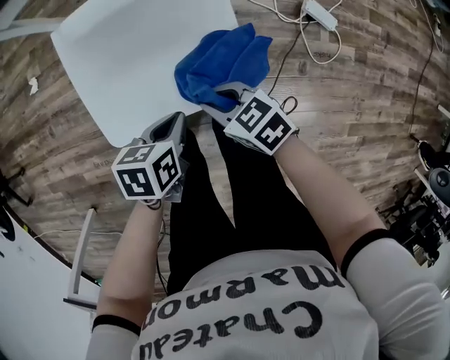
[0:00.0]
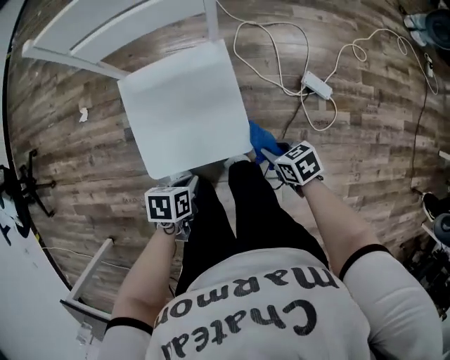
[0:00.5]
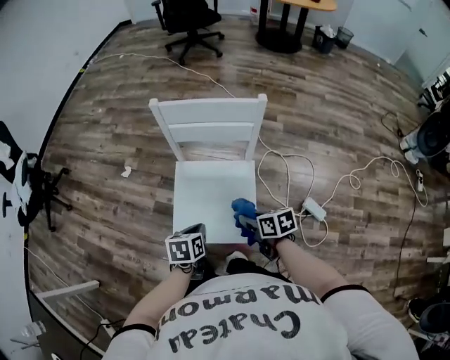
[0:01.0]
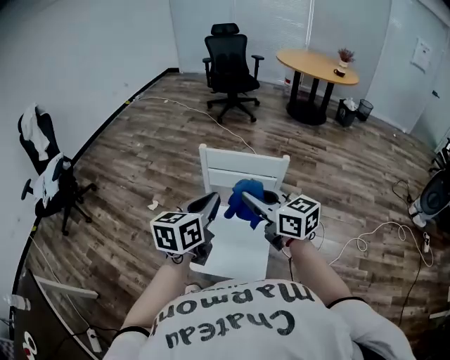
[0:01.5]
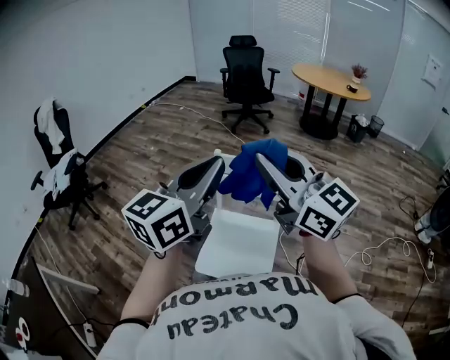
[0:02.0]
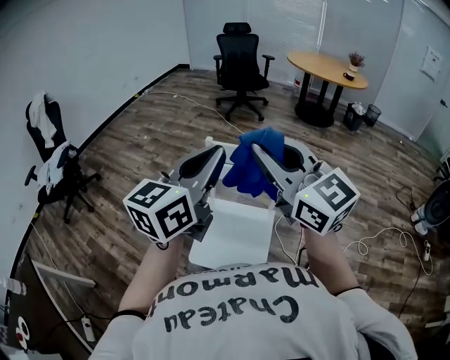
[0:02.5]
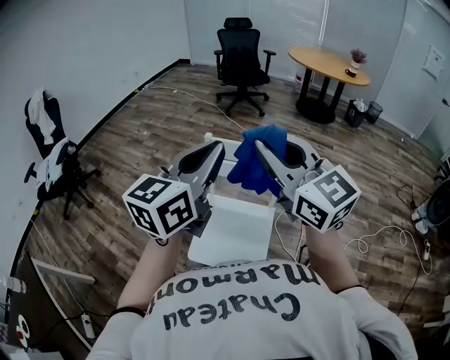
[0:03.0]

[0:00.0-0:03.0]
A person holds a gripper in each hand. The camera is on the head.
0:00.0 to 0:01.5: Both grippers travel together upward, some 50 cm. The left gripper angles its fingers upward, by about 40 degrees; the right gripper tilts its fingers about 40 degrees upward.
0:01.5 to 0:03.0: The two grippers go roughly 15 cm upward. The right gripper turns by approximately 30 degrees; the left gripper changes its angle by approximately 20 degrees.

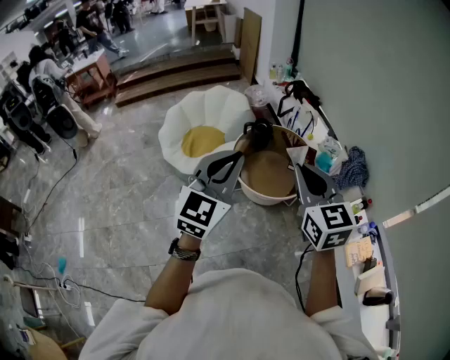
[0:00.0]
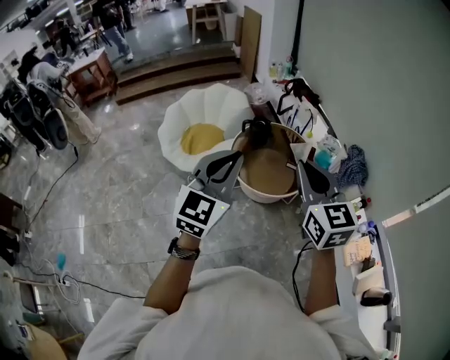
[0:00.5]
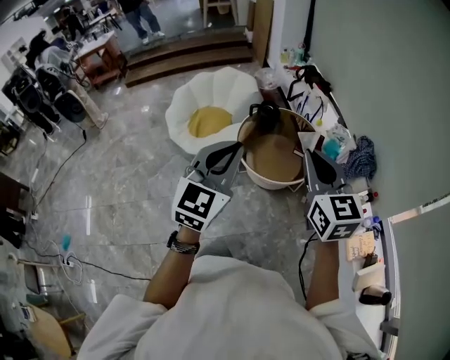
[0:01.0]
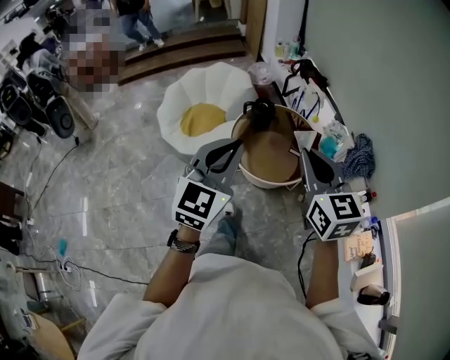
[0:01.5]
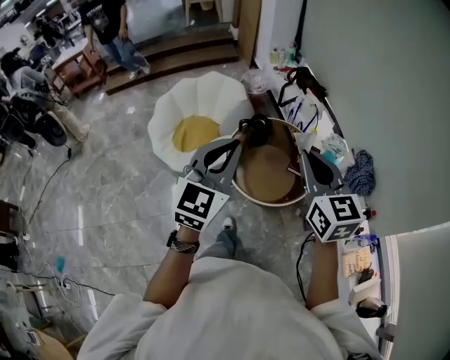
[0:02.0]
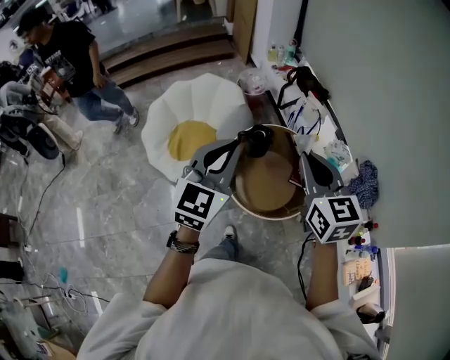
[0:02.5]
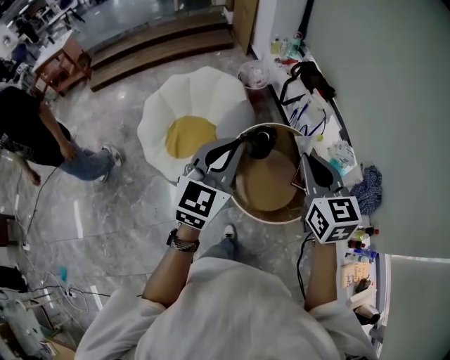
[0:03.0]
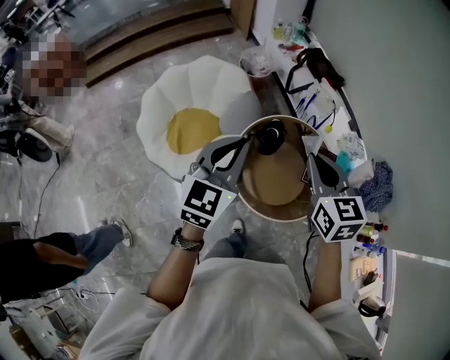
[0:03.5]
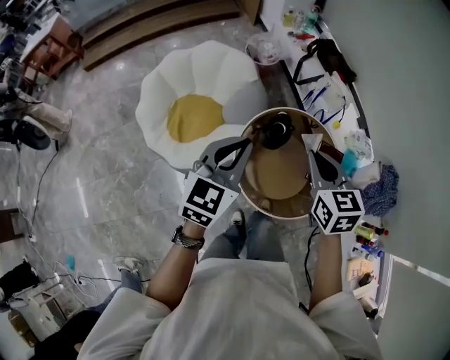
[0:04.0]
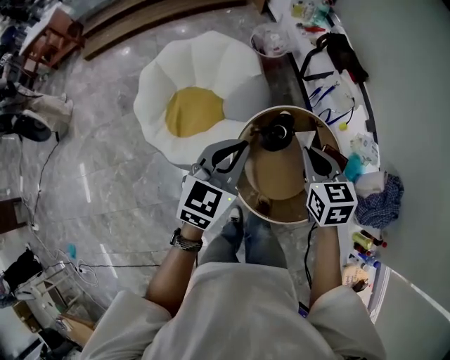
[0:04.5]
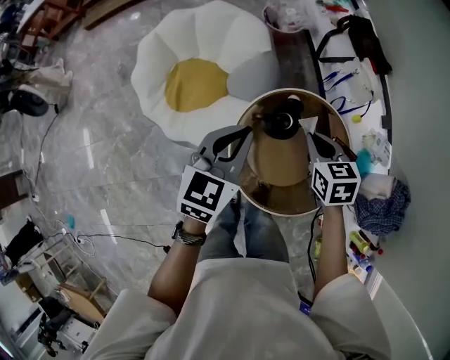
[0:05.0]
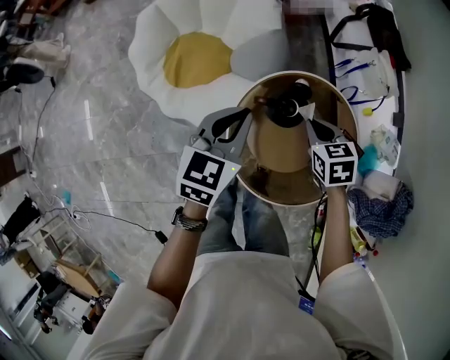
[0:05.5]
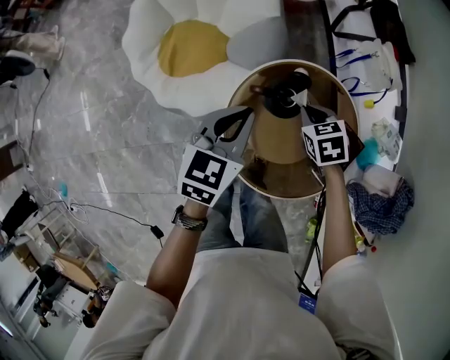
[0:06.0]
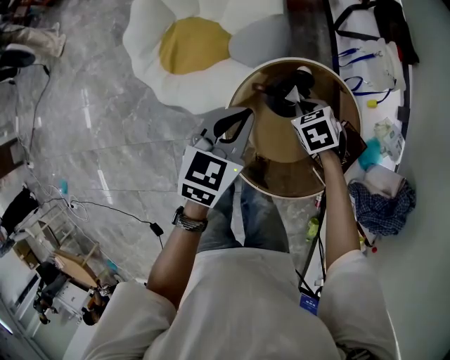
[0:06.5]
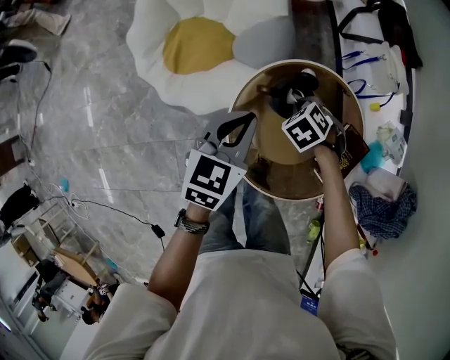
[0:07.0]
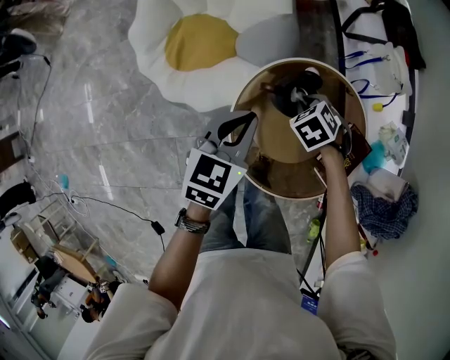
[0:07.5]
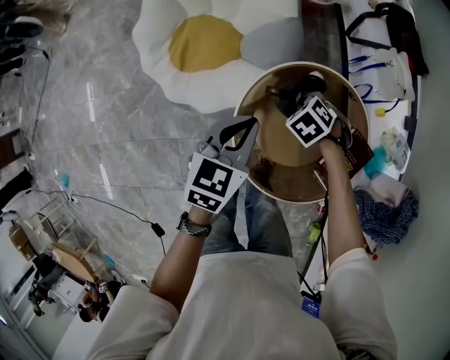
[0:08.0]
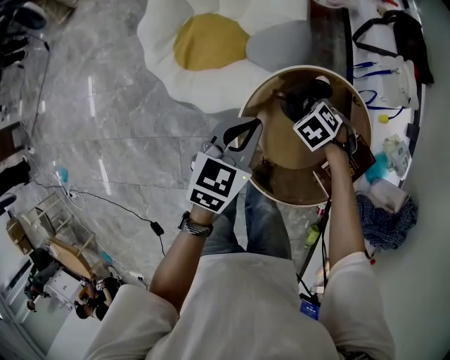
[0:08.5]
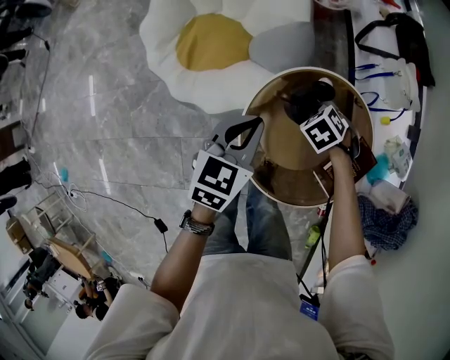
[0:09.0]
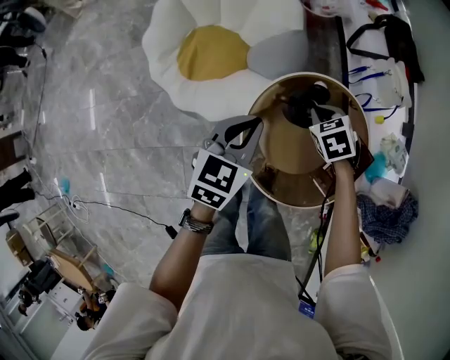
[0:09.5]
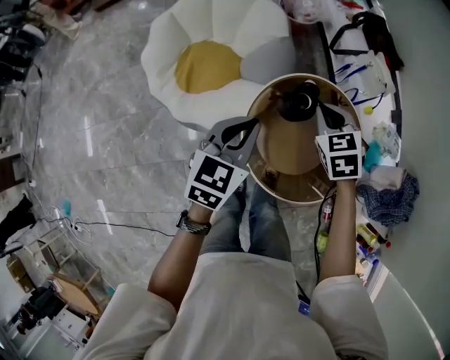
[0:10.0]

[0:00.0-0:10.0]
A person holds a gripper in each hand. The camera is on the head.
0:00.0 to 0:02.0: The two grippers go roughly 20 cm forward.
0:02.0 to 0:04.0: The grippers both shift forward and downward by some 35 cm. The right gripper turns by approximately 20 degrees.
0:04.0 to 0:06.0: The two grippers go roughly 30 cm downward and forward. The left gripper turns by roughly 30 degrees; the right gripper angles its fingers downward, by approximately 30 degrees.
0:06.0 to 0:08.0: The right gripper goes some 5 cm downward, and swivels about 30 degrees.
0:08.0 to 0:10.0: The left gripper moves upward, roughly 10 cm. The right gripper travels upward by roughly 20 cm, and turns by some 40 degrees.

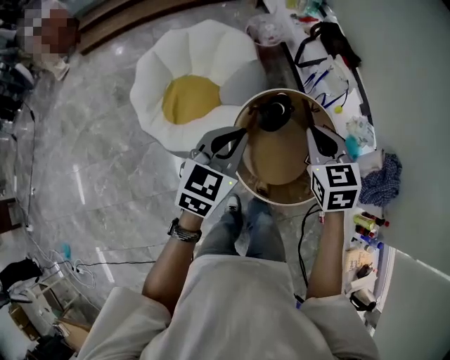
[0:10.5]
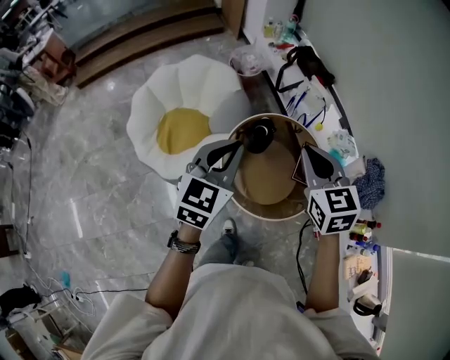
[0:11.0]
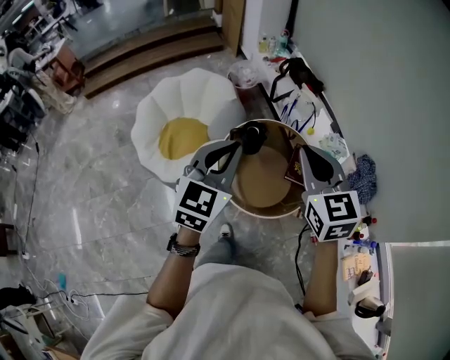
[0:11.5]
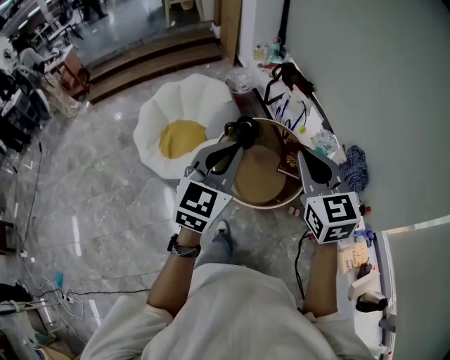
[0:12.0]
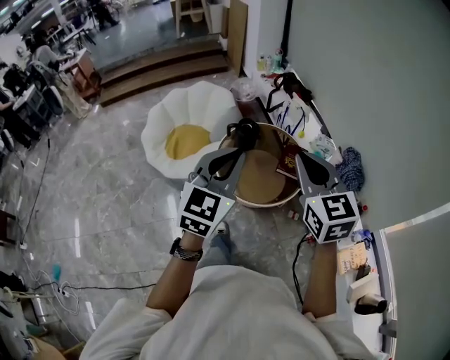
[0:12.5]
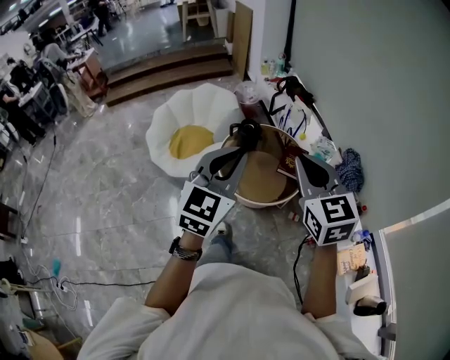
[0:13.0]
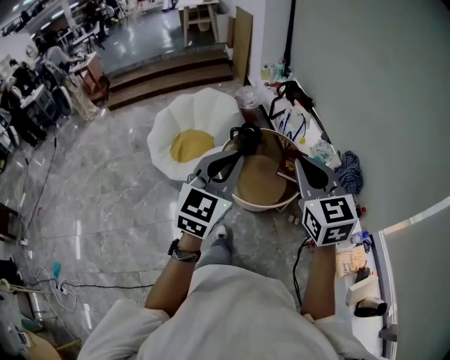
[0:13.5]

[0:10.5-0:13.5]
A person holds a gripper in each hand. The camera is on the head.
0:10.5 to 0:12.0: Both grippers travel together backward, upward and to the right, approximately 35 cm. The right gripper turns by approximately 20 degrees.
0:12.0 to 0:13.5: Both grippers travel together backward, roughly 15 cm.

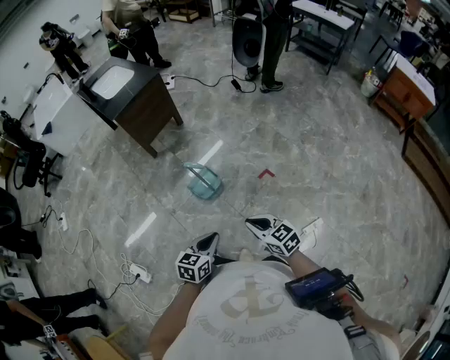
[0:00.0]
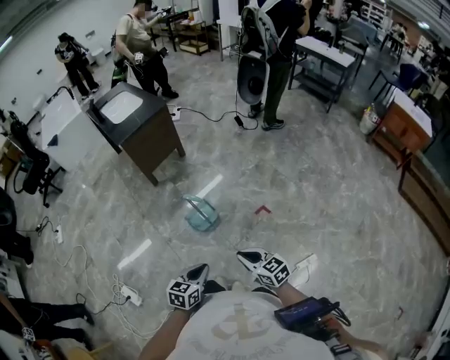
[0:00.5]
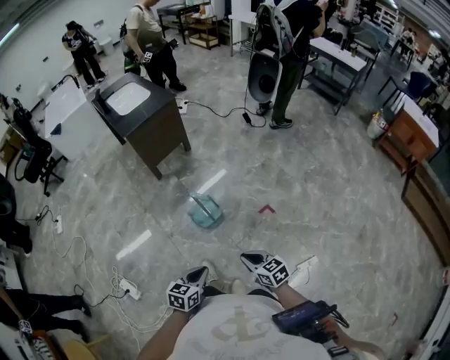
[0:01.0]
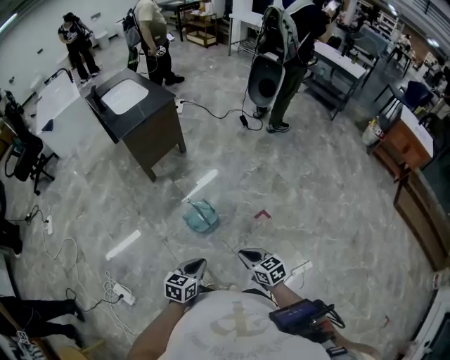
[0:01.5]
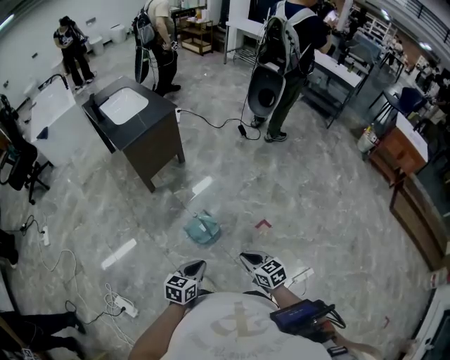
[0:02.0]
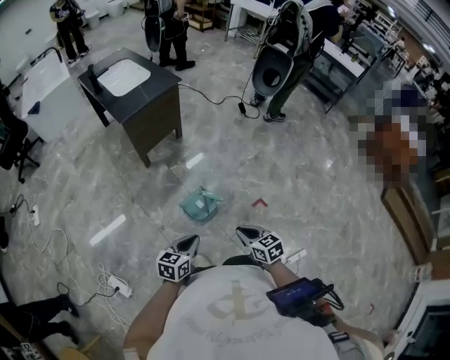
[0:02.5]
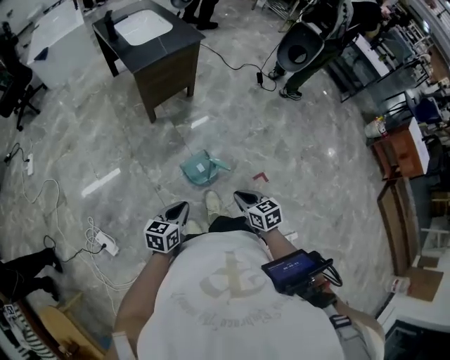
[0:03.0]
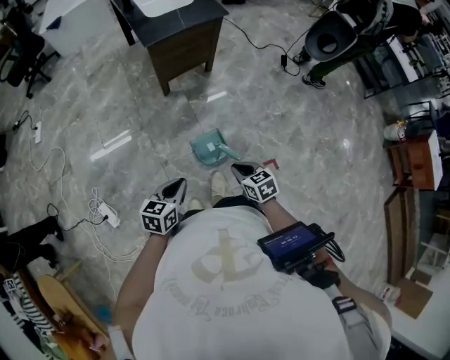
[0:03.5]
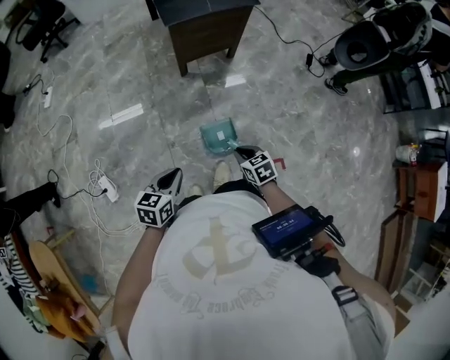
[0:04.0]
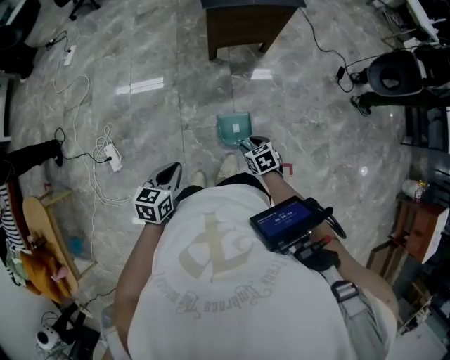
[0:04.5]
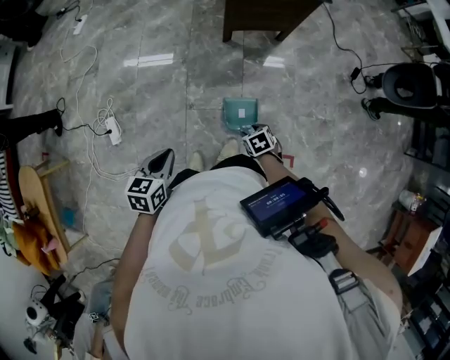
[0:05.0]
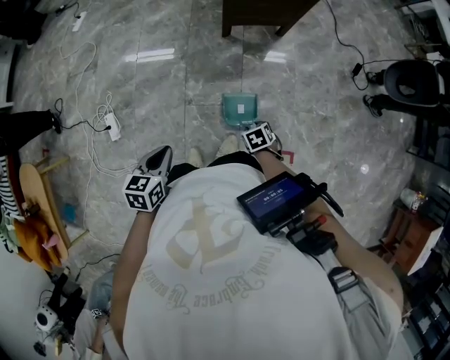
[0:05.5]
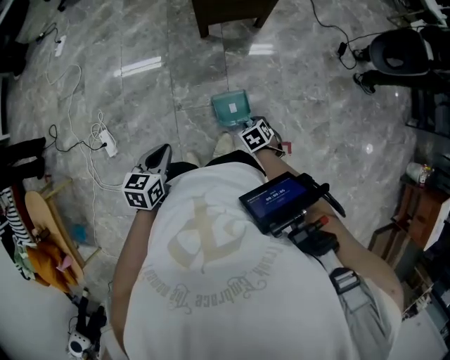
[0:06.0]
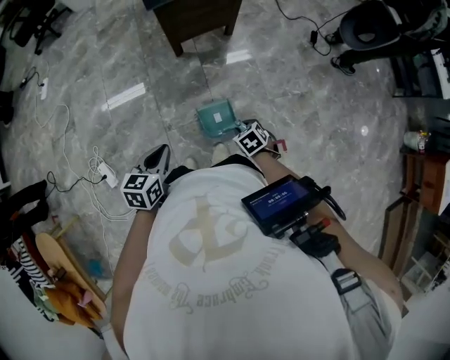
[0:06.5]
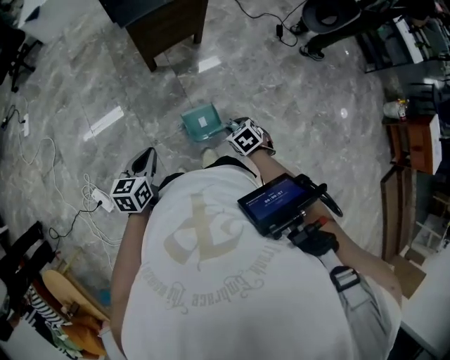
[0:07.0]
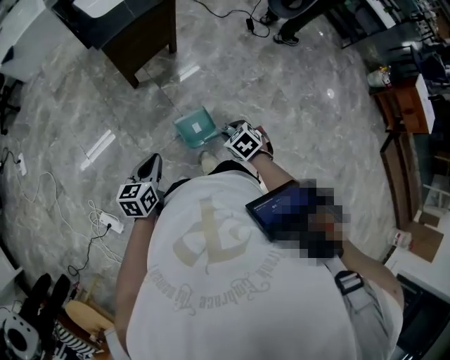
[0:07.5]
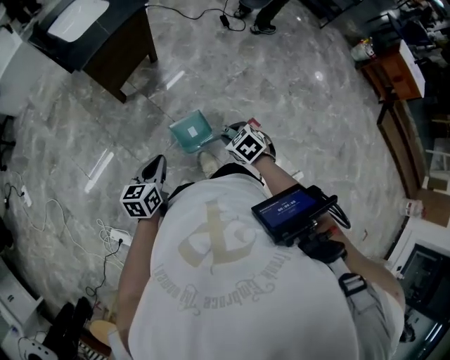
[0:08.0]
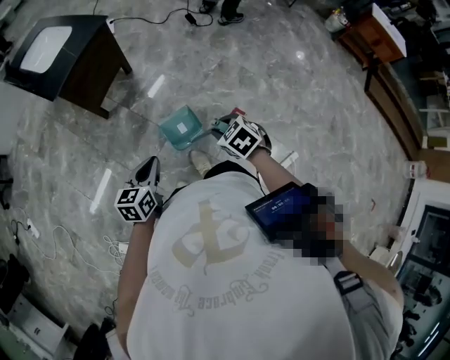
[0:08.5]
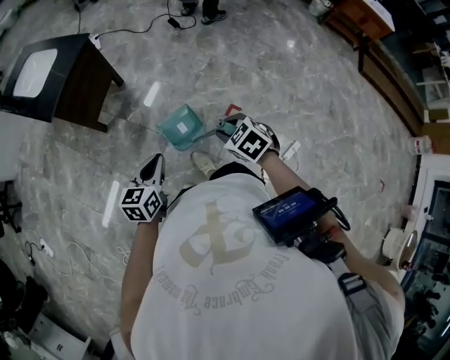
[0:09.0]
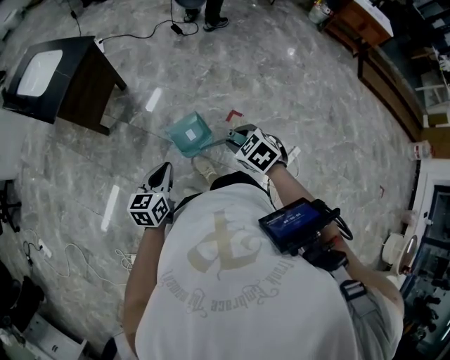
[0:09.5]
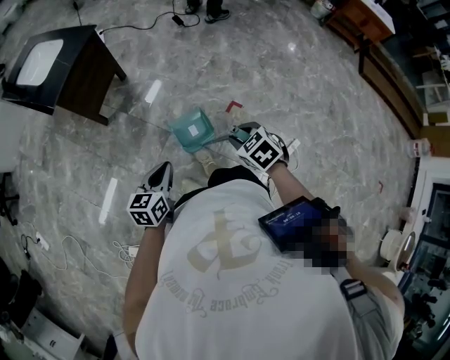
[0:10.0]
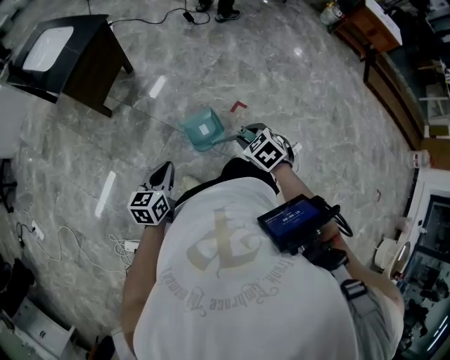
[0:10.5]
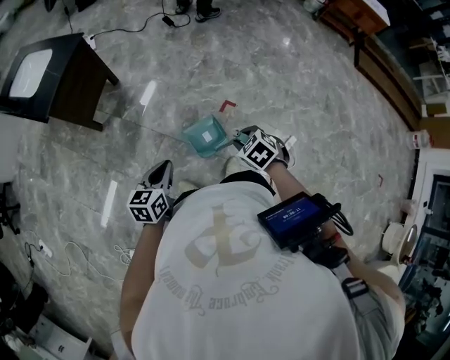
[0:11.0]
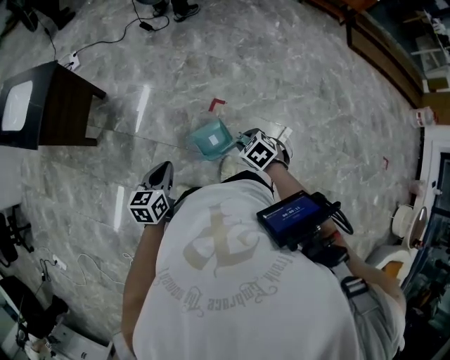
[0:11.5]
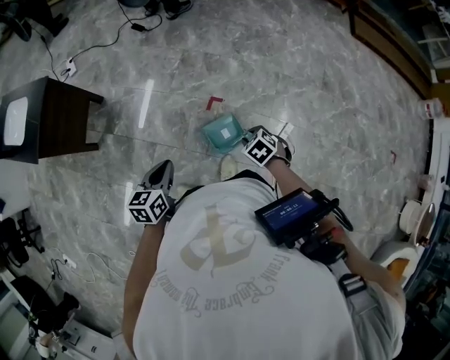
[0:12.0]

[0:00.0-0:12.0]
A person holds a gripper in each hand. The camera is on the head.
0:00.0 to 0:02.0: The two grippers go approximately 15 cm forward and to the left.
0:02.0 to 0:04.0: The left gripper changes place by roughly 15 cm, and rotates about 30 degrees. Meanwhile the right gripper shifts by about 25 cm, and rotates about 30 degrees.
0:04.0 to 0:06.0: The right gripper is displaced downward by roughly 10 cm, rotates approximately 30 degrees, and opens and closes again.
0:06.0 to 0:08.0: The right gripper heads upward, covering approximately 15 cm, and swivels about 30 degrees; the left gripper changes place by about 10 cm, and rotates approximately 30 degrees.
0:08.0 to 0:10.0: The left gripper goes some 10 cm to the right and backward. The right gripper goes about 15 cm backward, to the right and upward.
0:10.0 to 0:12.0: The left gripper moves to the right, approximately 20 cm. The right gripper goes some 30 cm to the right and downward.
